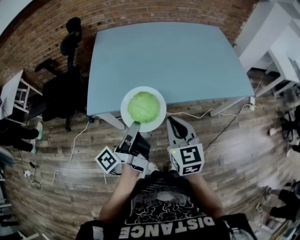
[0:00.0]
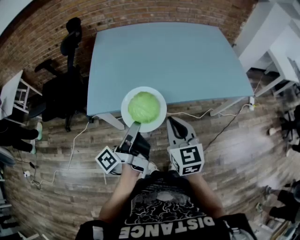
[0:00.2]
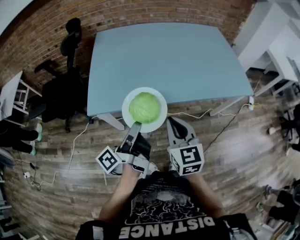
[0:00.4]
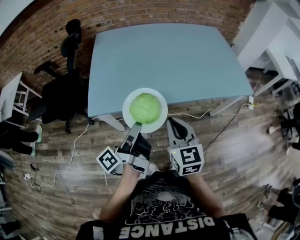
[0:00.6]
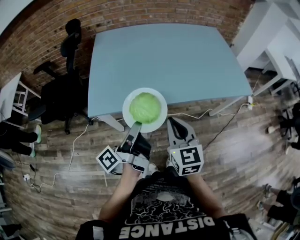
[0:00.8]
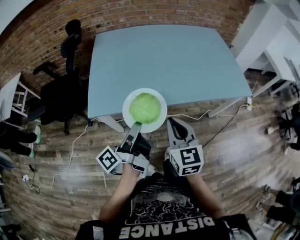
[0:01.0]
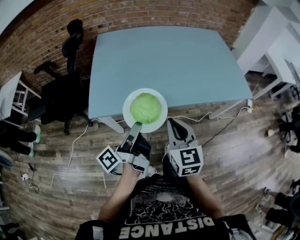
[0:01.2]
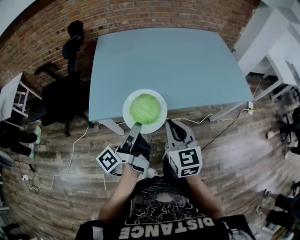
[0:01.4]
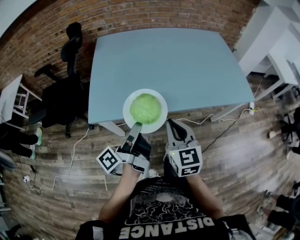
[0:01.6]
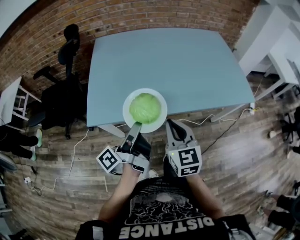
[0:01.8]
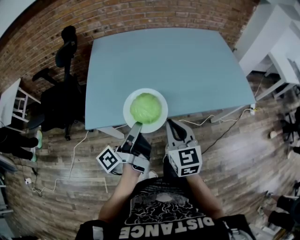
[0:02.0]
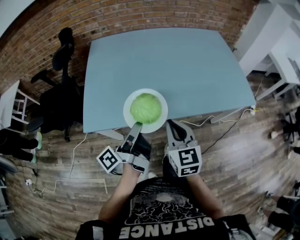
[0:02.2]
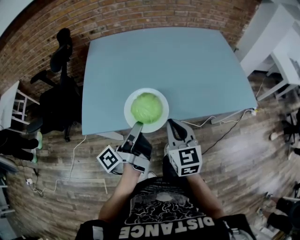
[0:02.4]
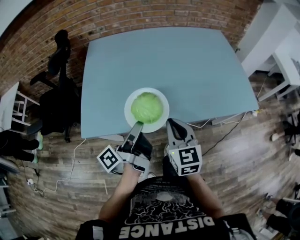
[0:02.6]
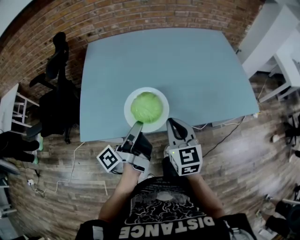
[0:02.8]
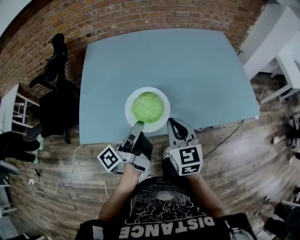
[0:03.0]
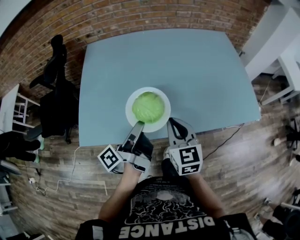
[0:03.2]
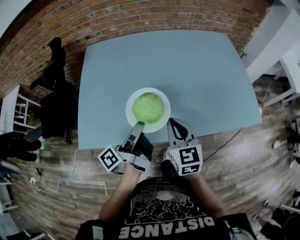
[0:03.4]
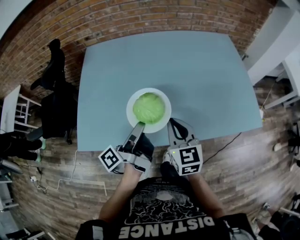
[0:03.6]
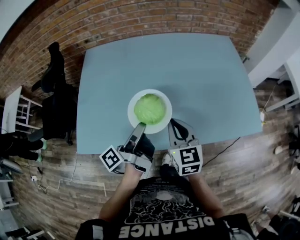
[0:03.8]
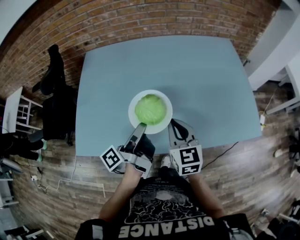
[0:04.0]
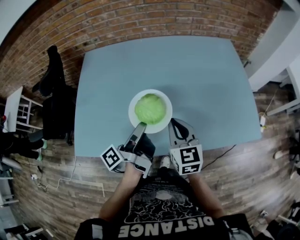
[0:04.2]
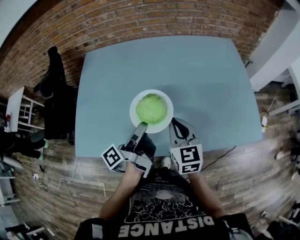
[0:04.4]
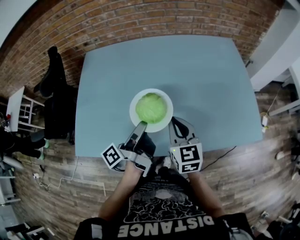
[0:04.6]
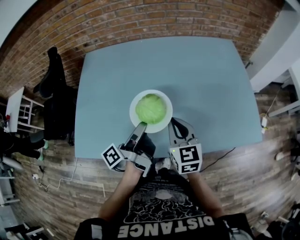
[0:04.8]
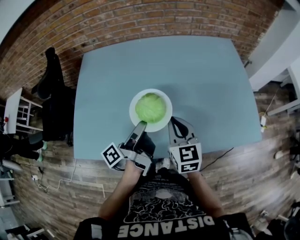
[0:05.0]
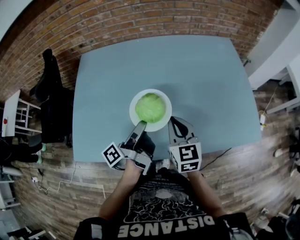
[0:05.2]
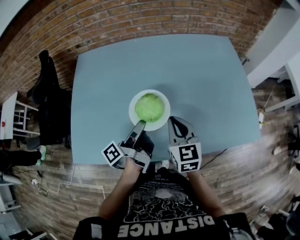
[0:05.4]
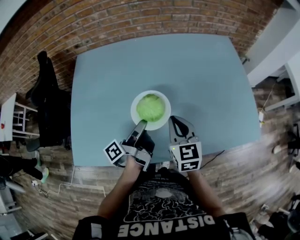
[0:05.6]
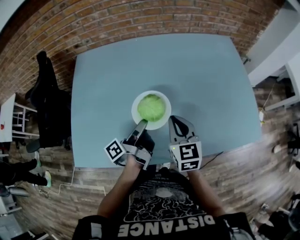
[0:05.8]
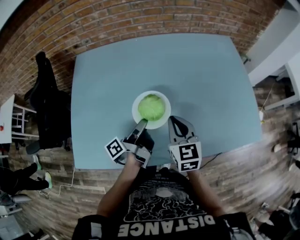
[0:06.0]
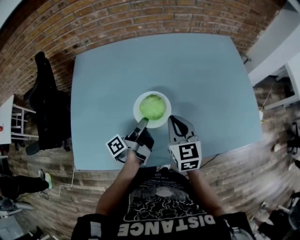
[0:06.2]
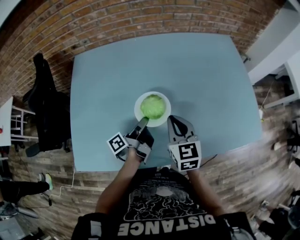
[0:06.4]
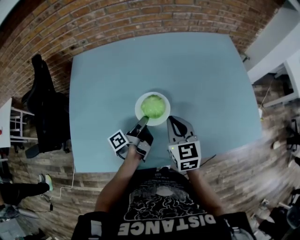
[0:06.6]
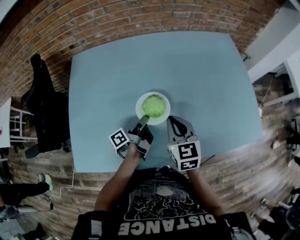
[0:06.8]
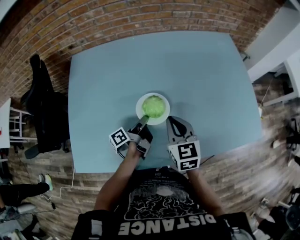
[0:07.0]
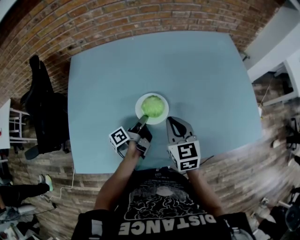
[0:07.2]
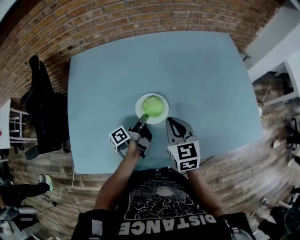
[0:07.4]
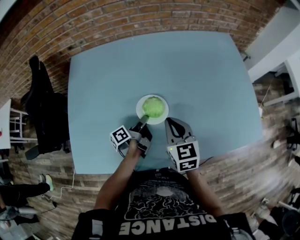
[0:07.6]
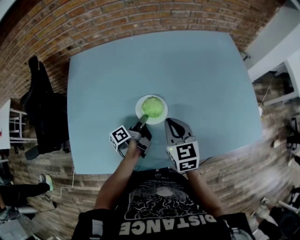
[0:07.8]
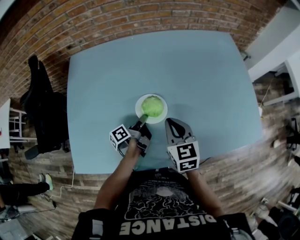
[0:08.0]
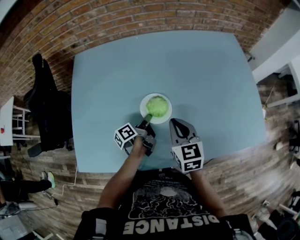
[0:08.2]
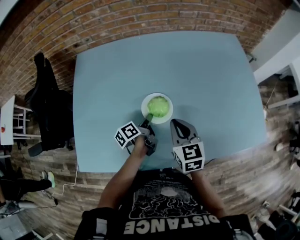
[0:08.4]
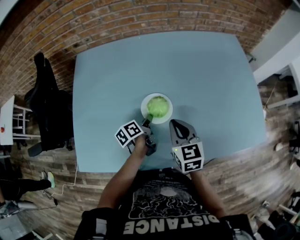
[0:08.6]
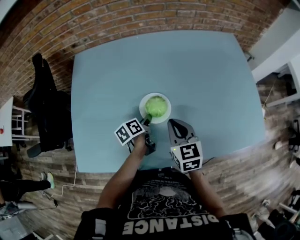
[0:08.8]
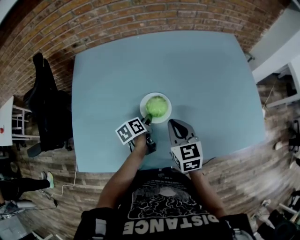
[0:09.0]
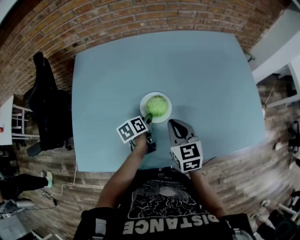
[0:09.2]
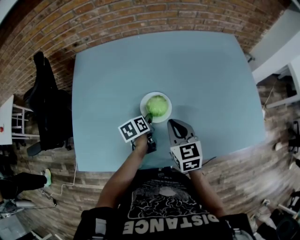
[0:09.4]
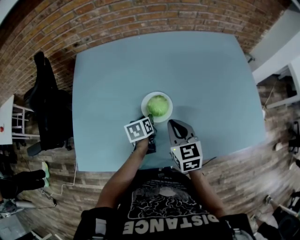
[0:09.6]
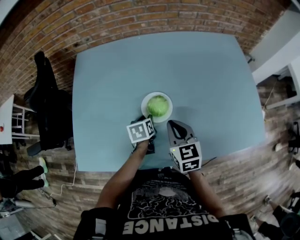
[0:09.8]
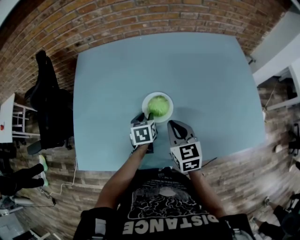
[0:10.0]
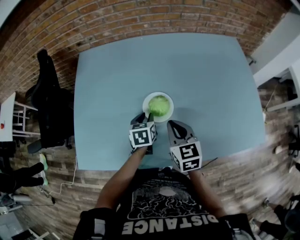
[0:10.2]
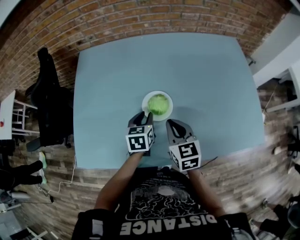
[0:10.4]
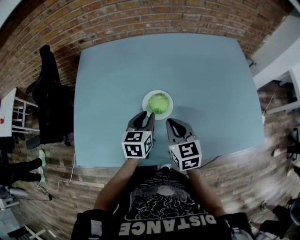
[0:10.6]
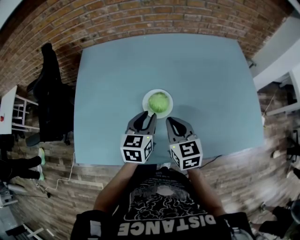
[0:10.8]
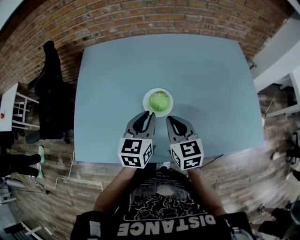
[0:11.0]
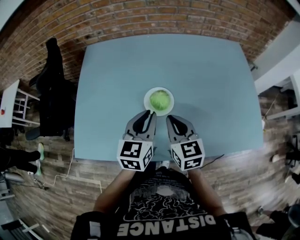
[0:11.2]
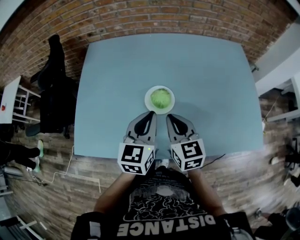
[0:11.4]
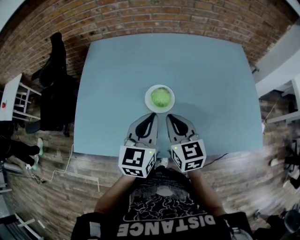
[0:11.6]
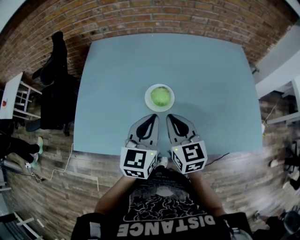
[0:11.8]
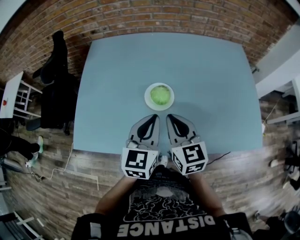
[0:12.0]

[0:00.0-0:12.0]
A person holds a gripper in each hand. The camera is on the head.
0:00.0 to 0:01.6: The grippers make only small movements.
0:01.6 to 0:03.0: The grippers both shift forward and to the right by approximately 15 cm.
0:03.0 to 0:04.4: The two grippers go some 15 cm forward and to the right.
0:04.4 to 0:06.0: The left gripper travels downward and forward by roughly 10 cm. Meanwhile the right gripper shifts some 5 cm forward.
0:06.0 to 0:07.6: The left gripper is displaced downward by about 10 cm.
0:07.6 to 0:09.0: The left gripper rotates roughly 40 degrees.
0:09.0 to 0:10.4: The left gripper moves upward, some 5 cm, and rotates around the line of its fingers by about 40 degrees, clockwise from behind.
0:10.4 to 0:12.0: The left gripper heads upward and backward, covering roughly 20 cm, turns by about 30 degrees, and closes its fingers. The right gripper shifts roughly 5 cm upward.

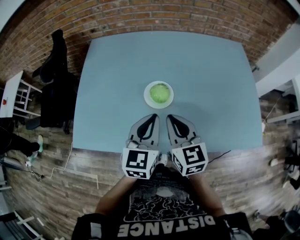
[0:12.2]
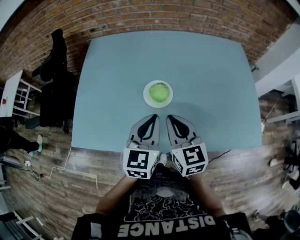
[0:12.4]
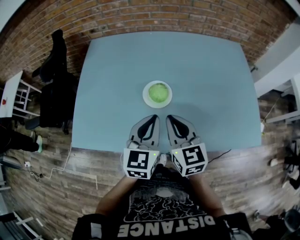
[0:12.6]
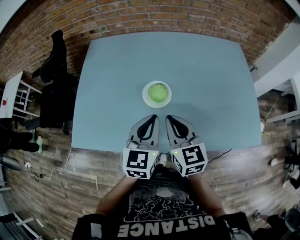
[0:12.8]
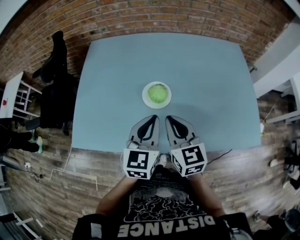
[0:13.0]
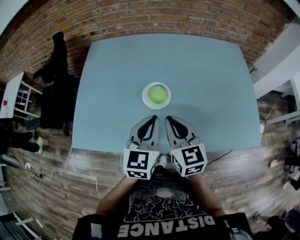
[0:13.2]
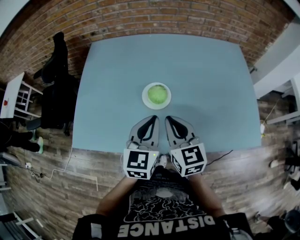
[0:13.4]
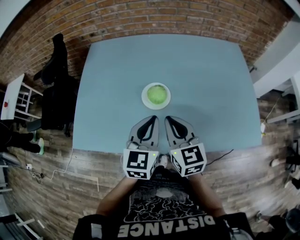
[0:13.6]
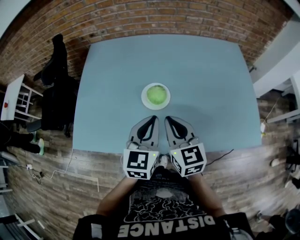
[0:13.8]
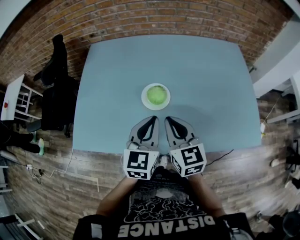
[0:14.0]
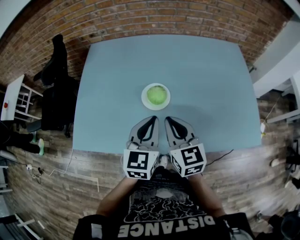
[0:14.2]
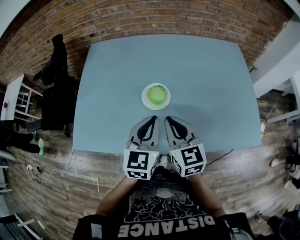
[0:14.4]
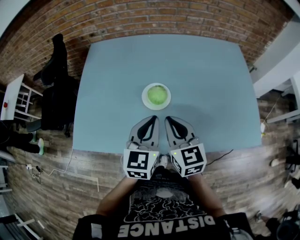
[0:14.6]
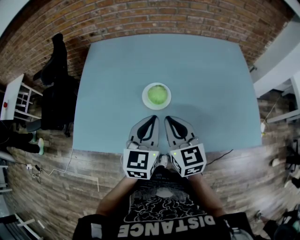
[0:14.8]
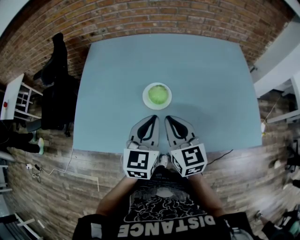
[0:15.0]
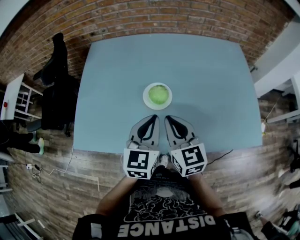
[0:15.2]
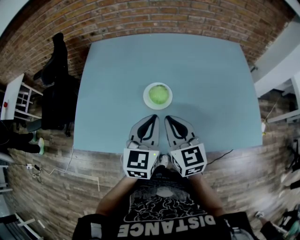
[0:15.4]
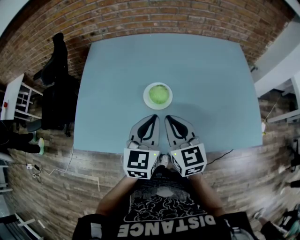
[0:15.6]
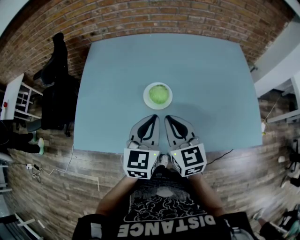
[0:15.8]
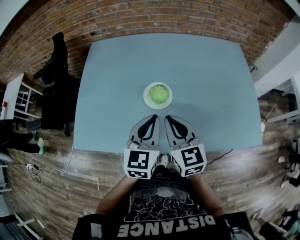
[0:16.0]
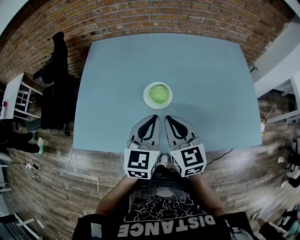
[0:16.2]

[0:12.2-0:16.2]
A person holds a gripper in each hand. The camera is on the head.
0:12.2 to 0:13.6: The grippers make only small movements.
0:13.6 to 0:16.2: Neither gripper changes place.

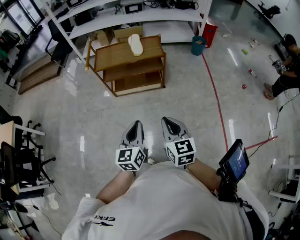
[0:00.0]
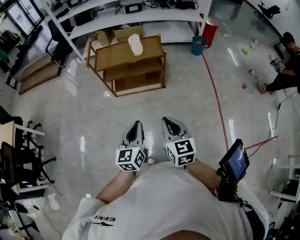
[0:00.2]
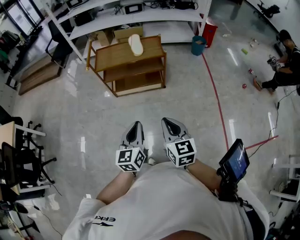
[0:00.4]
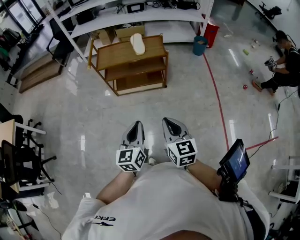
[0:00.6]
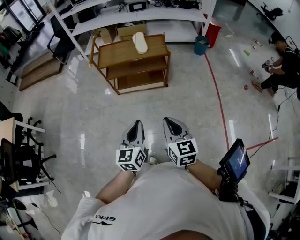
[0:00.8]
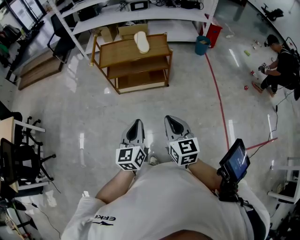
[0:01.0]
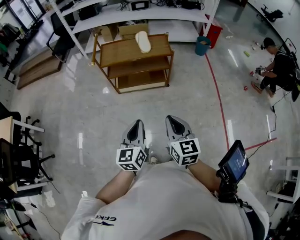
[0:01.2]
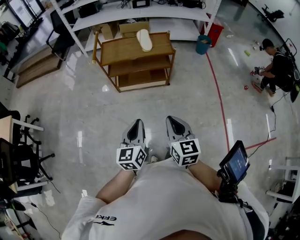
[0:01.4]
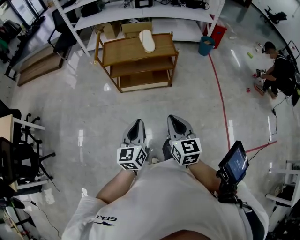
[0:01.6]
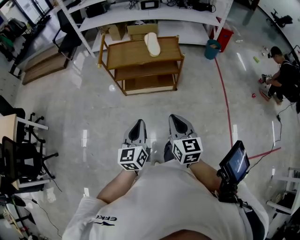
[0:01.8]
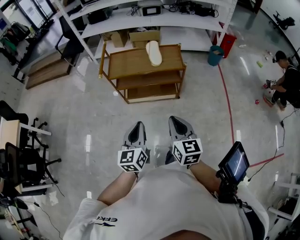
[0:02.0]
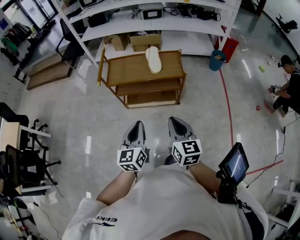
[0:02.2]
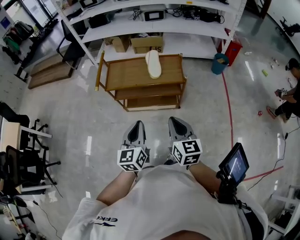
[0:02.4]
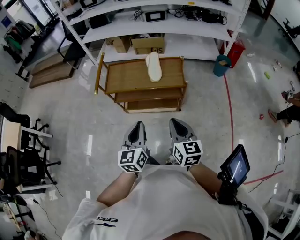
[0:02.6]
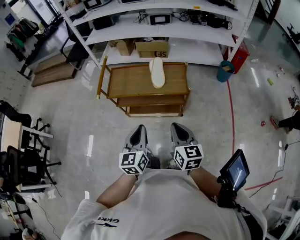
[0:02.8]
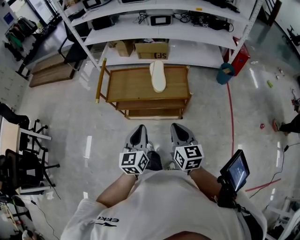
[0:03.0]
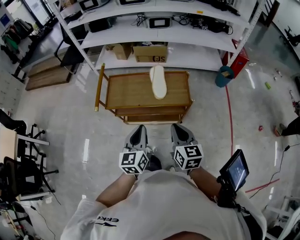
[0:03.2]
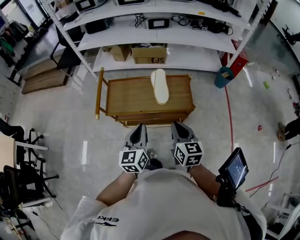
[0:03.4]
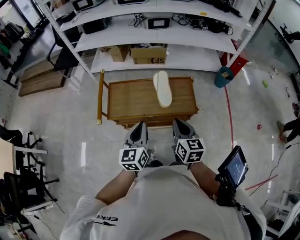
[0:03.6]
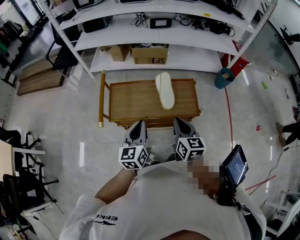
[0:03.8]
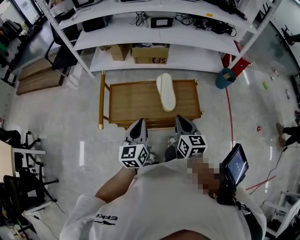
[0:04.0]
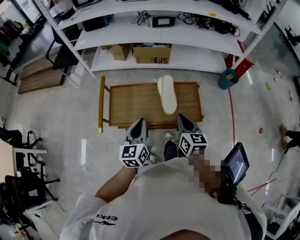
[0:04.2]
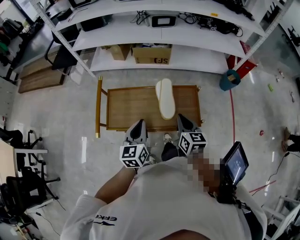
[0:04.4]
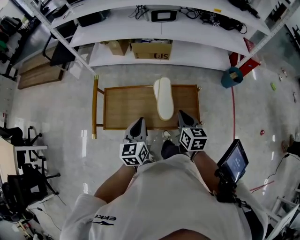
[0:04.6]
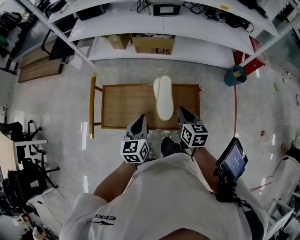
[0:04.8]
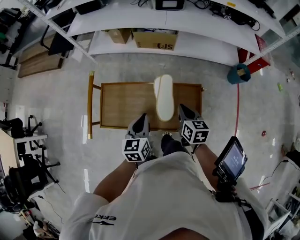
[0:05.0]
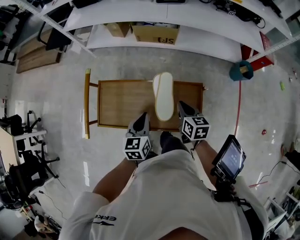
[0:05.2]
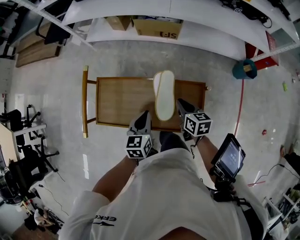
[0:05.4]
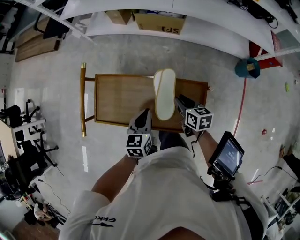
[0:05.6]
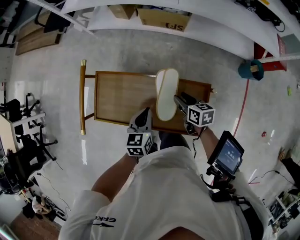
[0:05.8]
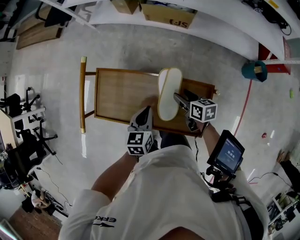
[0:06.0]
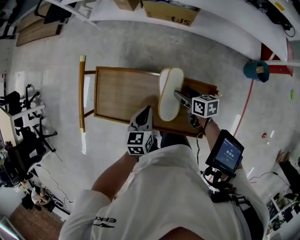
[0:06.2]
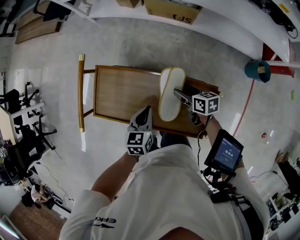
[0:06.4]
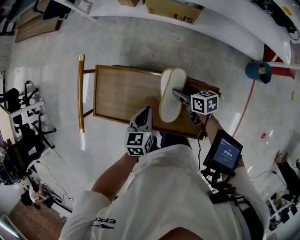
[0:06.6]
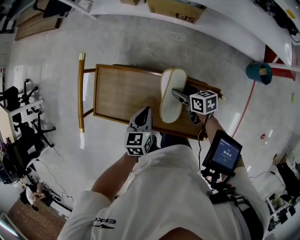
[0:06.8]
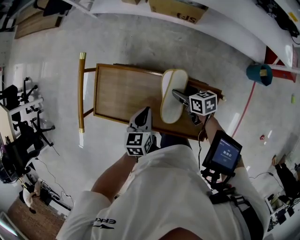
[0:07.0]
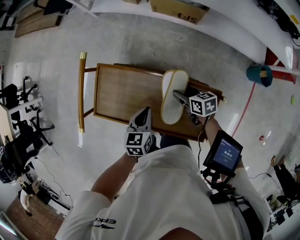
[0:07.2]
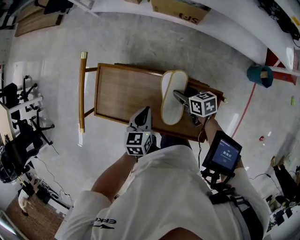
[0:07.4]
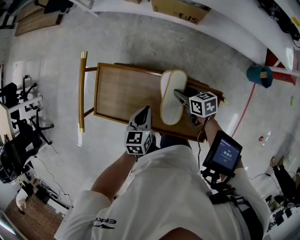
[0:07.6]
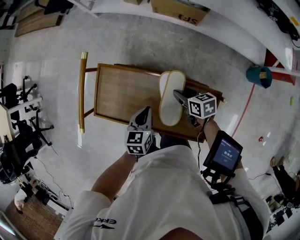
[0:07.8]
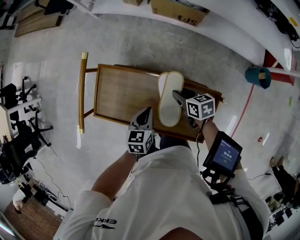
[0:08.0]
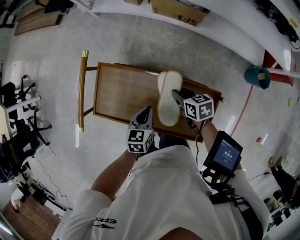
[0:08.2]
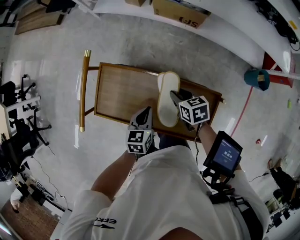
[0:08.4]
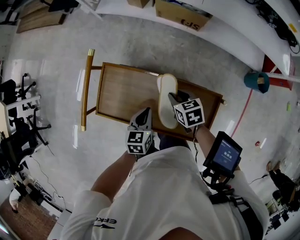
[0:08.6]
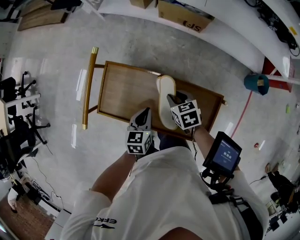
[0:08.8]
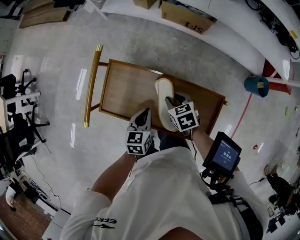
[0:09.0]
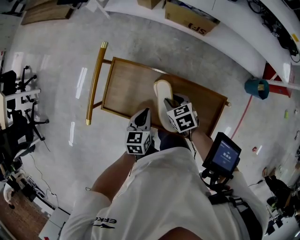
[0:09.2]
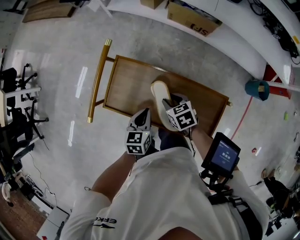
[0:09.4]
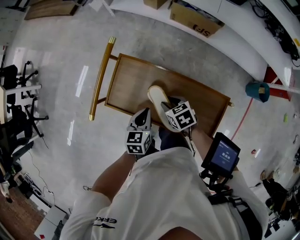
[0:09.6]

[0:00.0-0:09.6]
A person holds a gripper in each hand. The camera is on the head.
0:00.0 to 0:01.6: The two grippers go some 5 cm to the left.
0:01.6 to 0:03.2: The two grippers go some 35 cm forward.
0:03.2 to 0:04.8: The grippers both shift forward by some 30 cm.
0:04.8 to 0:06.4: The right gripper shifts approximately 25 cm downward and forward, changes its angle by roughly 40 degrees, and opens, while the left gripper goes some 15 cm downward and forward.
0:06.4 to 0:08.0: The right gripper closes up.
0:08.0 to 0:09.6: The right gripper goes about 15 cm to the left, and swivels about 30 degrees. Meanwhile the left gripper heads to the left, covering approximately 10 cm.
